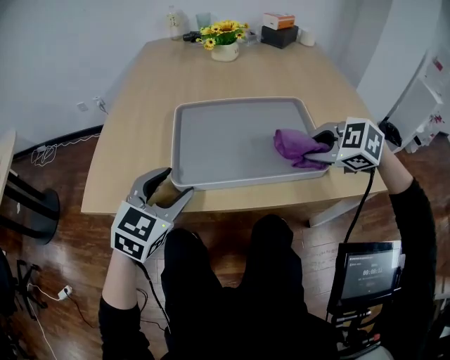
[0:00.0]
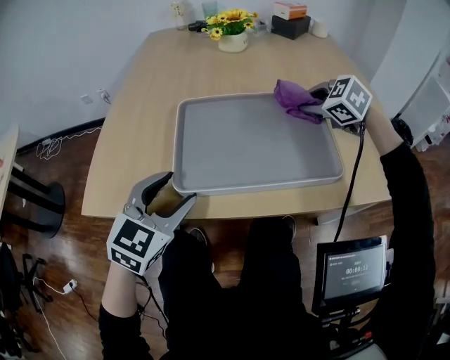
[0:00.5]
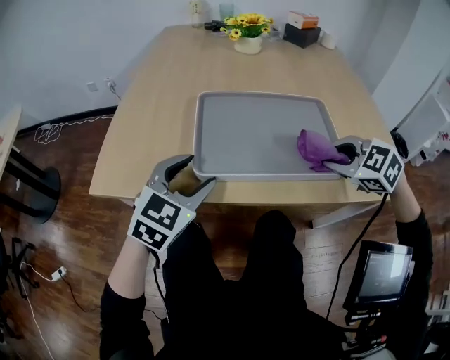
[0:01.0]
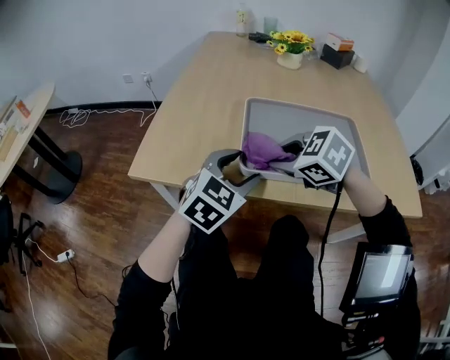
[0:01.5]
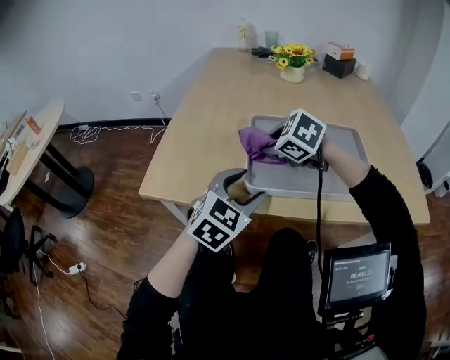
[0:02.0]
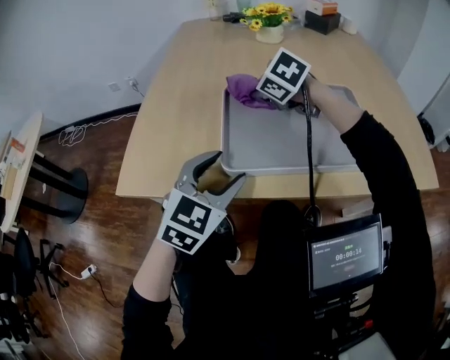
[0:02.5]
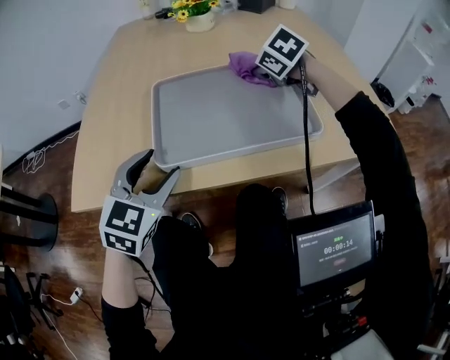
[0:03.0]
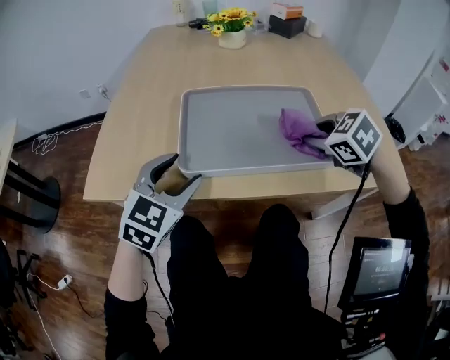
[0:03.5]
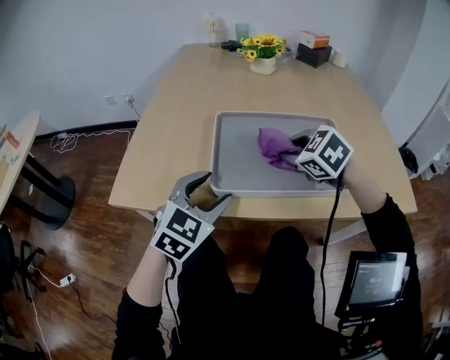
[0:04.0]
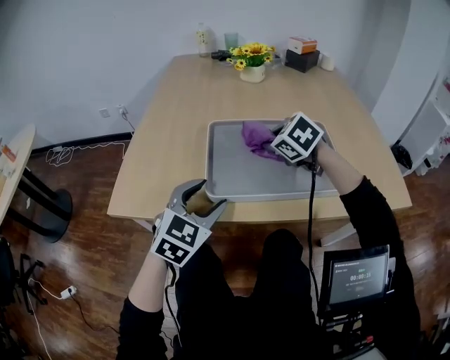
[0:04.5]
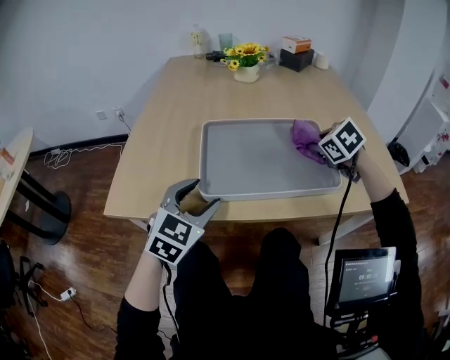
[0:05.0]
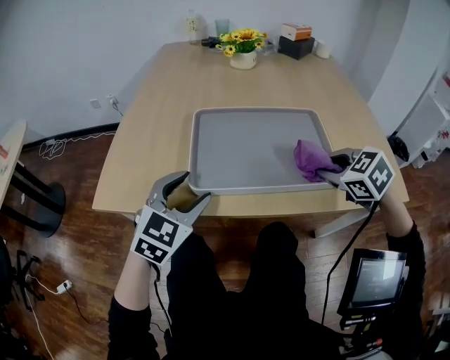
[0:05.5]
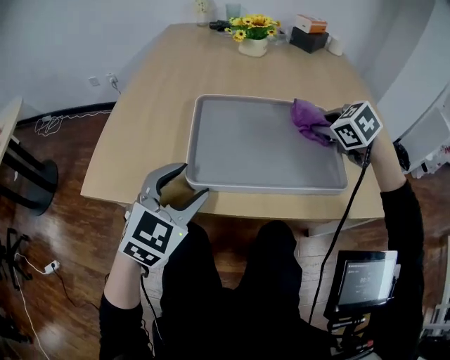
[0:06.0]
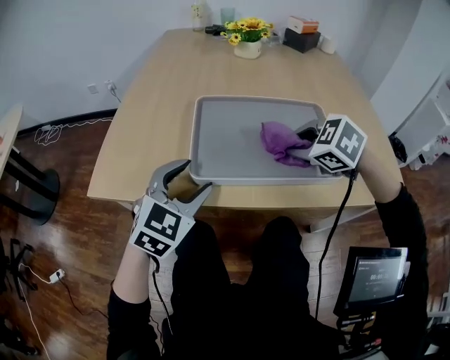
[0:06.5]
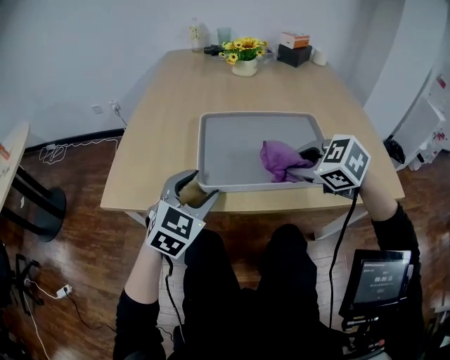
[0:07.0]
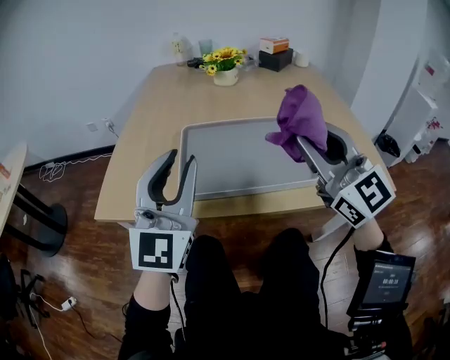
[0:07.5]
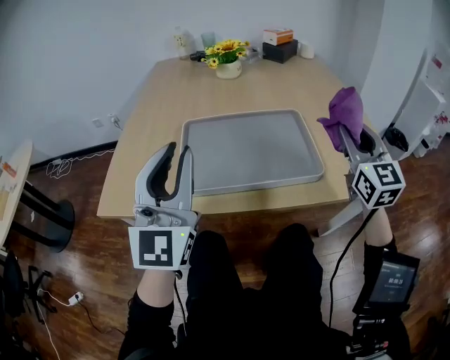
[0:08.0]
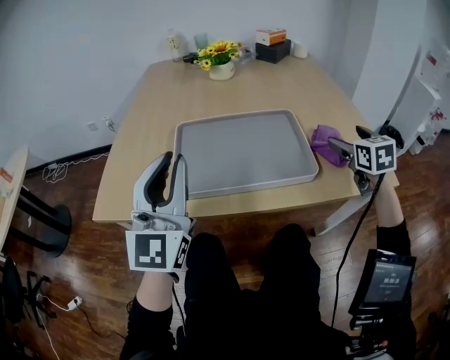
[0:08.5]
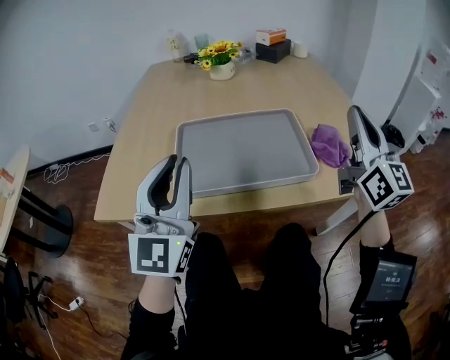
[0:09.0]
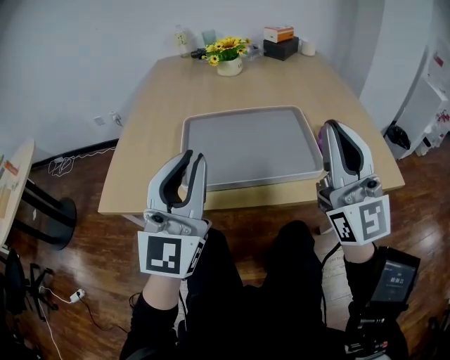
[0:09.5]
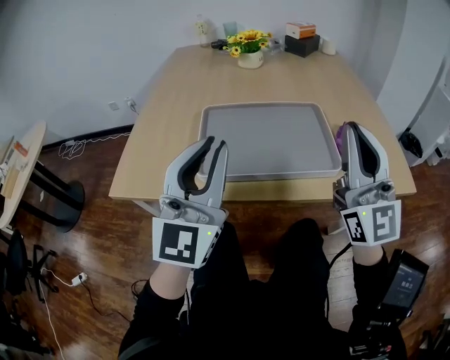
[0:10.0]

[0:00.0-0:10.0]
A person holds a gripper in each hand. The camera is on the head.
0.0 to 2.0 s: The right gripper heads to the left and forward, covering approximately 30 cm.
2.0 to 4.0 s: The right gripper moves to the right, some 15 cm.
4.0 to 6.0 s: The right gripper travels to the right and forward by approximately 15 cm.
6.0 to 8.0 s: The left gripper is displaced upward by some 20 cm, tilts its fingers approximately 40 degrees upward, and closes. Meanwhile the right gripper moves upward, backward and to the right, some 20 cm, and angles its fingers upward, by some 60 degrees.
8.0 to 10.0 s: The right gripper is displaced to the left, backward and upward by some 15 cm, swivels some 30 degrees, and opens, then closes again.

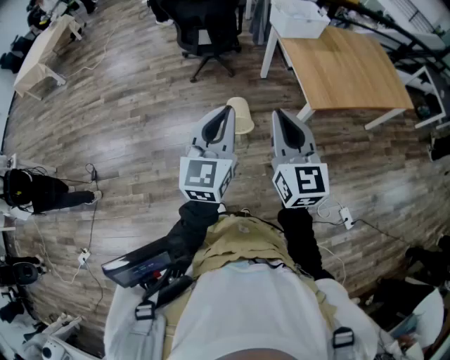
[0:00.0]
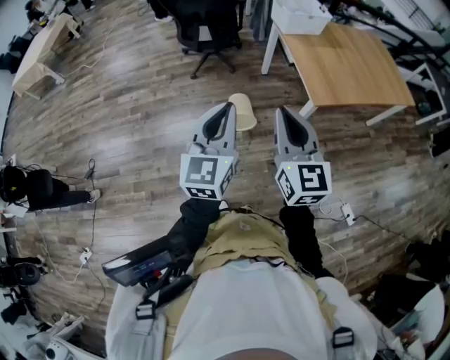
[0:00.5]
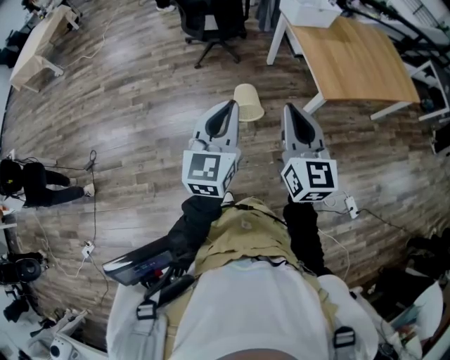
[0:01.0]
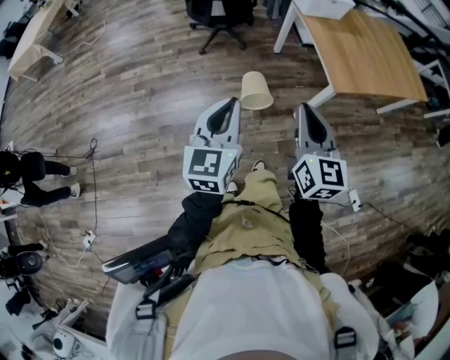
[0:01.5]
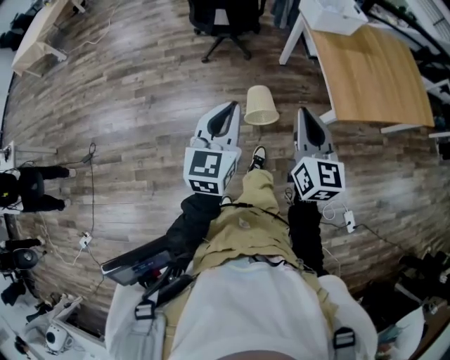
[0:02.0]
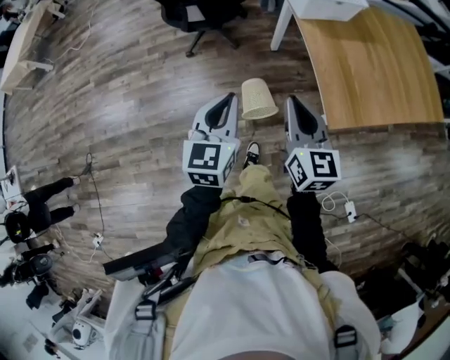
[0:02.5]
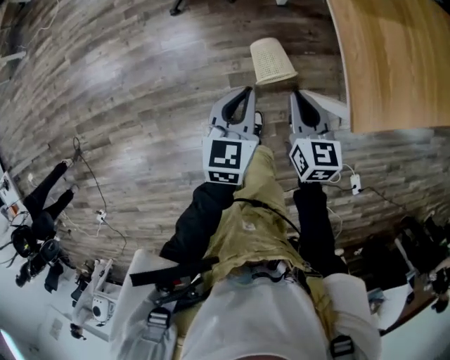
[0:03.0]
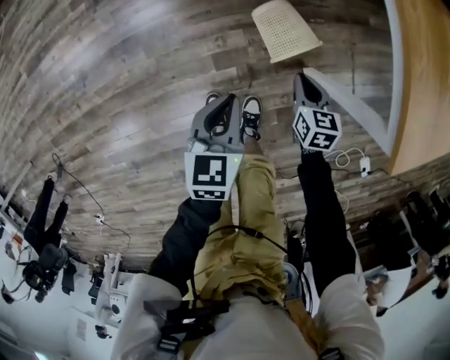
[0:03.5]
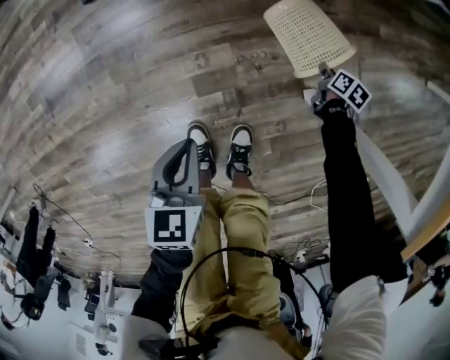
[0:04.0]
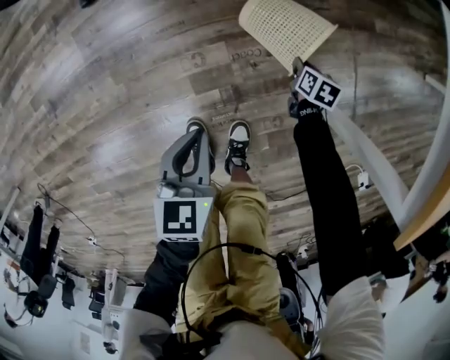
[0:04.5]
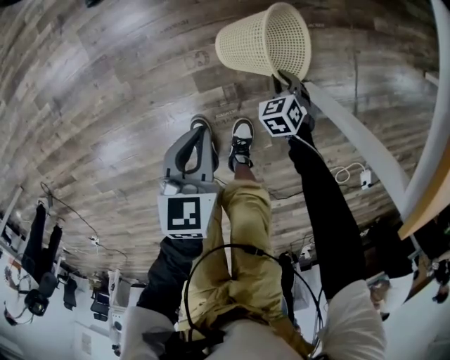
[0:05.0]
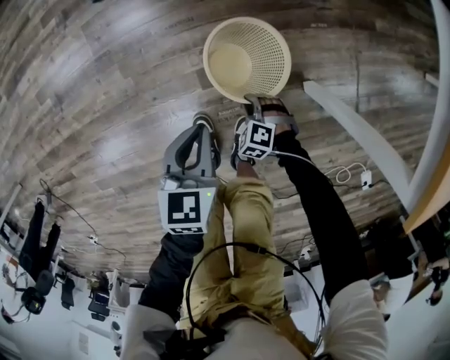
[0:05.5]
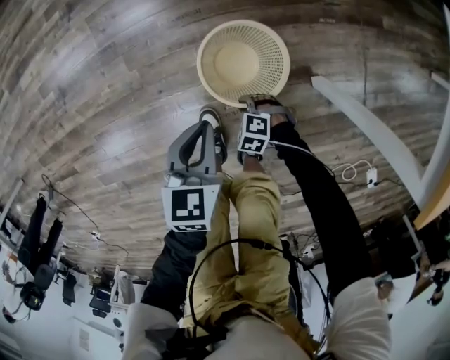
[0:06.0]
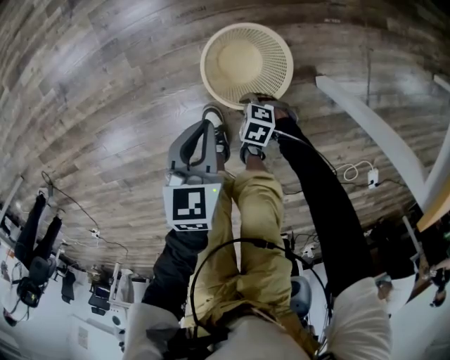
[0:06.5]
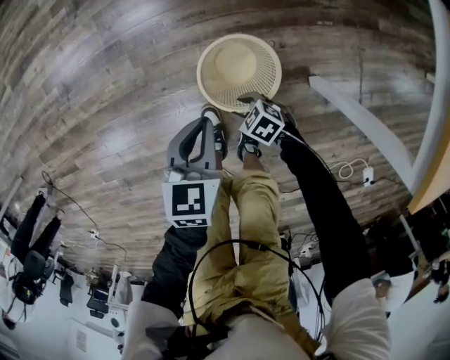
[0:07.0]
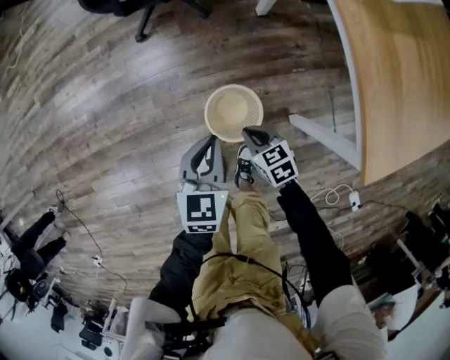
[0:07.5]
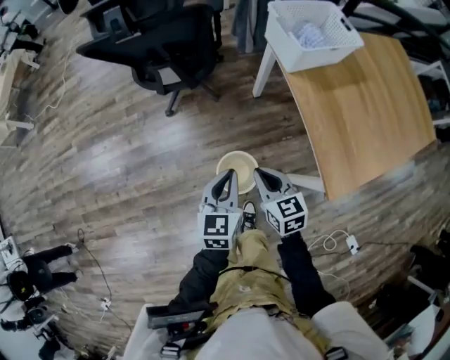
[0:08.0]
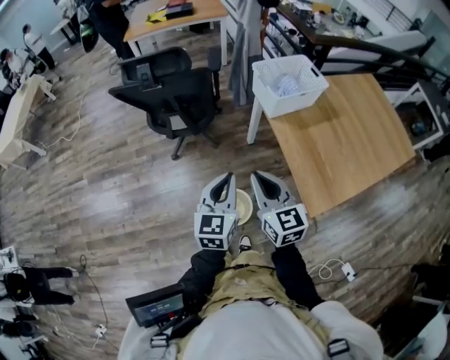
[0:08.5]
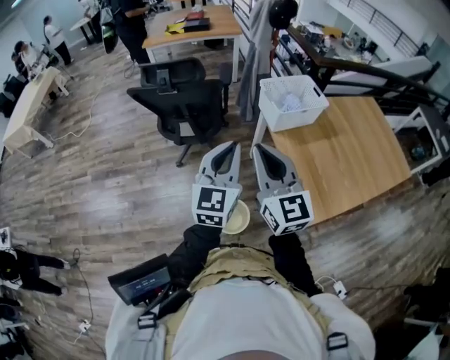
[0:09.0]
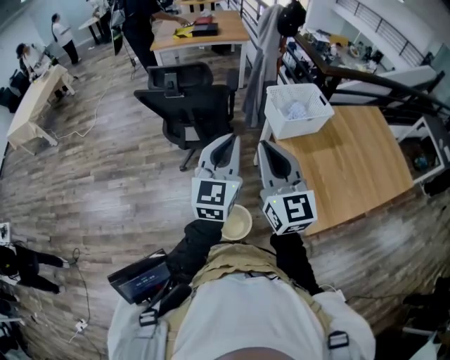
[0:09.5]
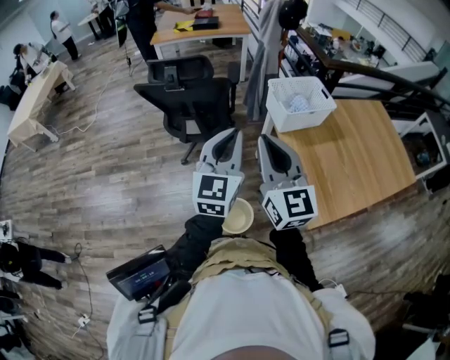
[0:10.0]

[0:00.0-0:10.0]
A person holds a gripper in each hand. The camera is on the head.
0.0 to 2.0 s: The left gripper travels forward, downward and to the left by roughly 15 cm. Meanwhile the right gripper heads forward and downward, covering about 15 cm.
2.0 to 4.0 s: Both grippers move downward and forward, some 80 cm. The right gripper points its fingers roughly 60 degrees further downward. Meanwhile the left gripper tips its fingers downward by approximately 40 degrees.
4.0 to 6.0 s: The right gripper moves some 40 cm, and rolls counterclockwise, seen from behind, by roughly 110 degrees.
6.0 to 8.0 s: The grippers both shift upward by some 60 cm. The right gripper tips its fingers upward by approximately 40 degrees, and opens, then closes again; the left gripper rotates roughly 30 degrees.
8.0 to 10.0 s: Both grippers move upward, approximately 35 cm. The right gripper tips its fingers upward by about 40 degrees. The left gripper swivels some 30 degrees.

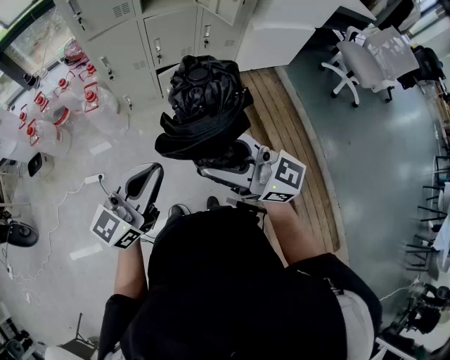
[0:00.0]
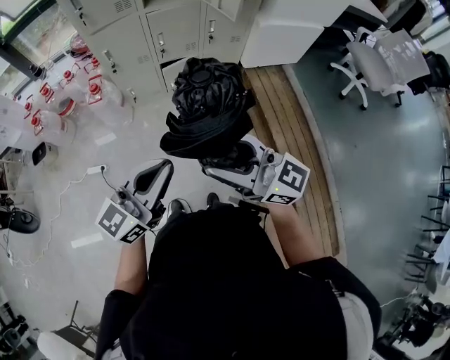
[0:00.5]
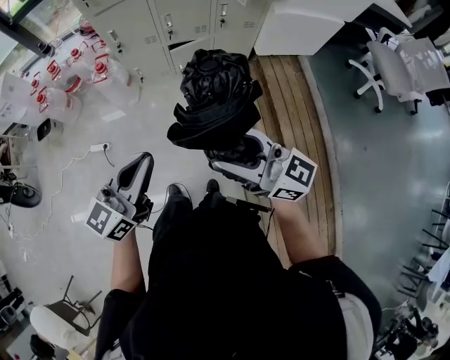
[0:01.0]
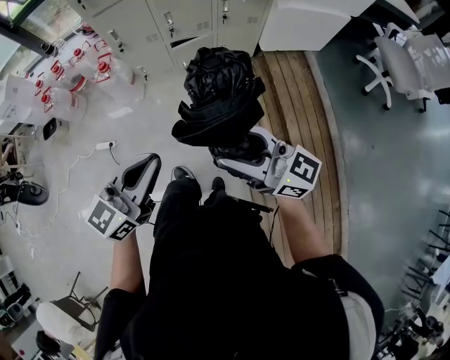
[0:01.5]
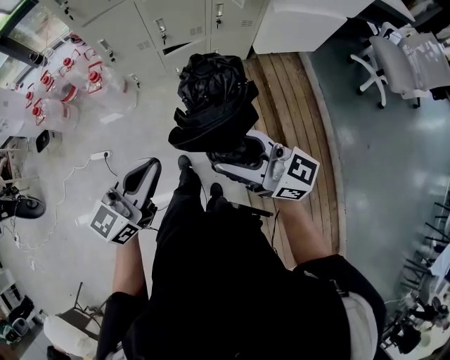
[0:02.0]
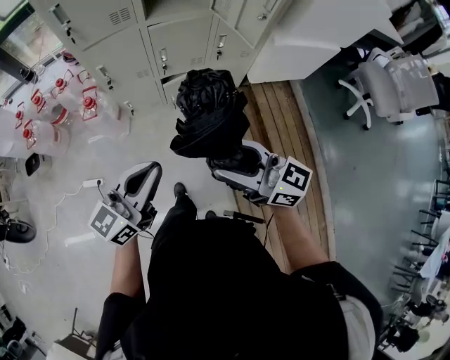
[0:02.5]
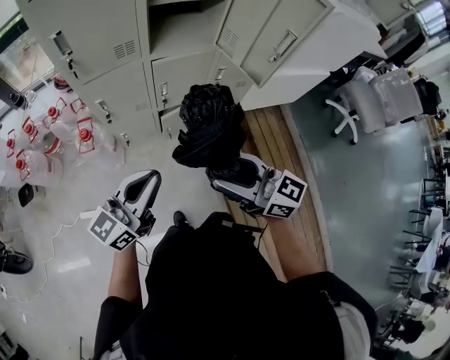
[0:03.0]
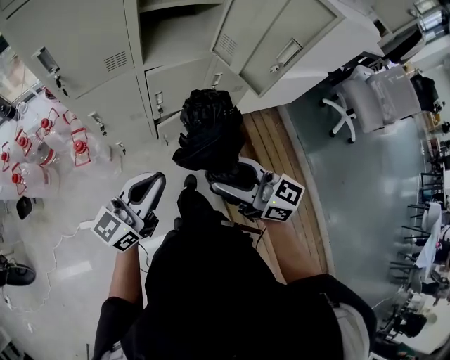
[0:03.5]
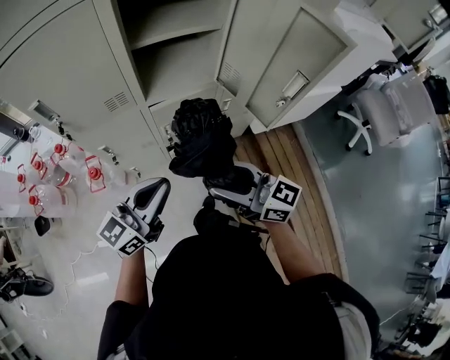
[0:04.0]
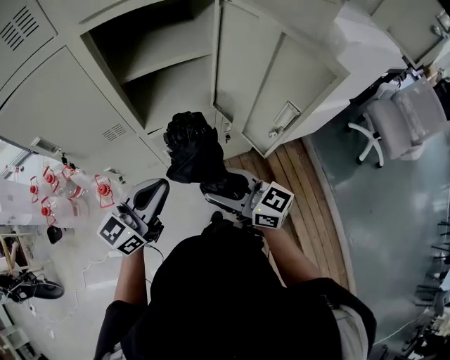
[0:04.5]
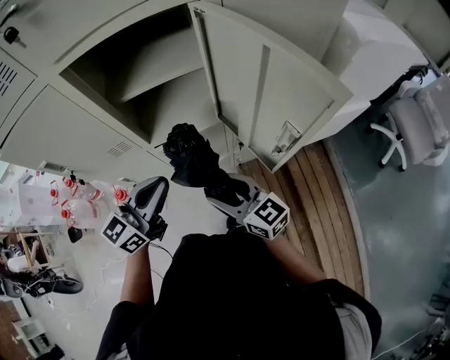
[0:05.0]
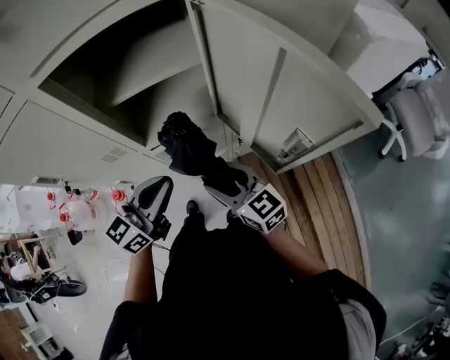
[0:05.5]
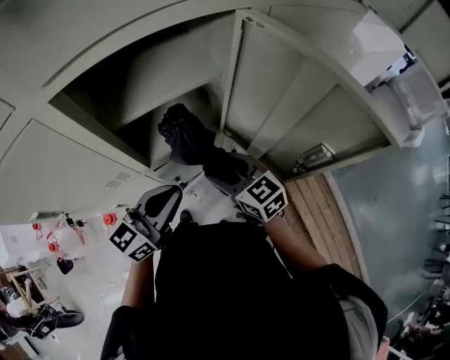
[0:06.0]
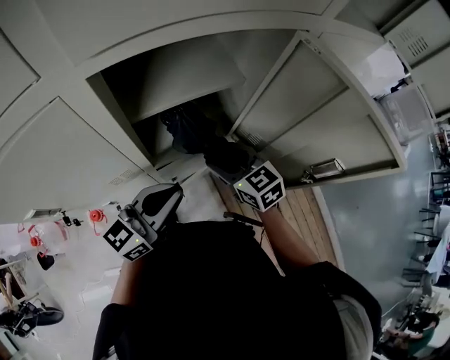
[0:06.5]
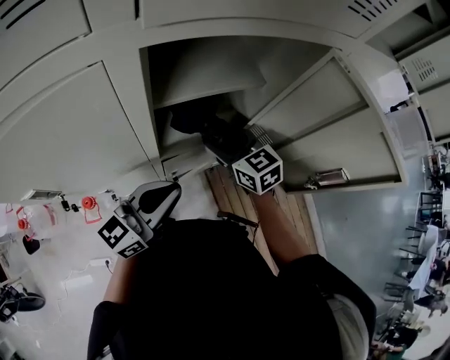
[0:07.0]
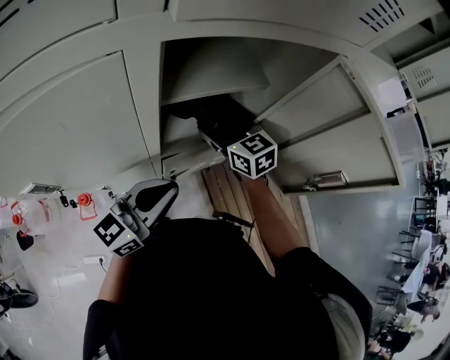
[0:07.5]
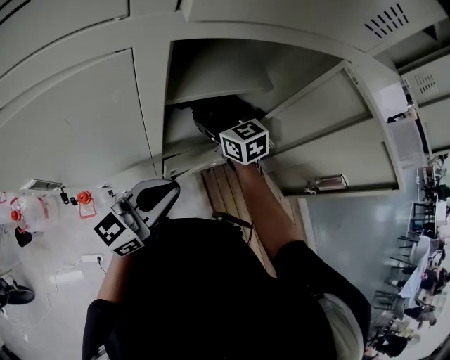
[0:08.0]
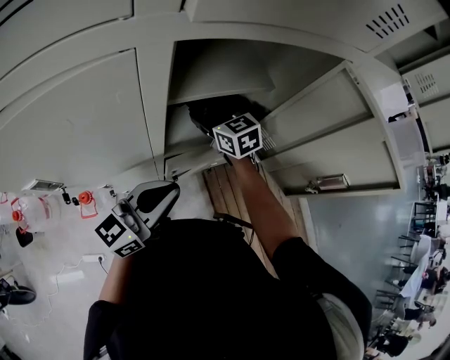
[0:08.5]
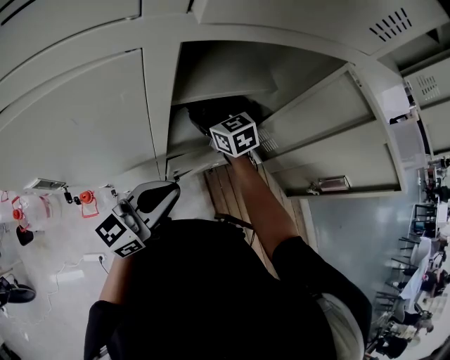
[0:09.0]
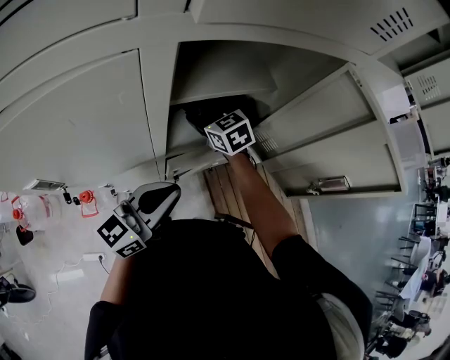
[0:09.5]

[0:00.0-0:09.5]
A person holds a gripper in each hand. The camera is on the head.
0.0 to 2.0 s: The left gripper shifts approximately 10 cm to the right and forward, while the right gripper goes some 15 cm to the right, forward and downward.
2.0 to 4.0 s: Both grippers travel together forward, some 40 cm.
4.0 to 5.5 s: The right gripper shifts roughly 15 cm forward and downward. Meanwhile the left gripper goes roughly 15 cm forward.
5.5 to 7.5 s: The left gripper is displaced to the left by some 10 cm; the right gripper goes some 20 cm forward and to the left.
7.5 to 9.5 s: The right gripper moves to the left, roughly 5 cm.
